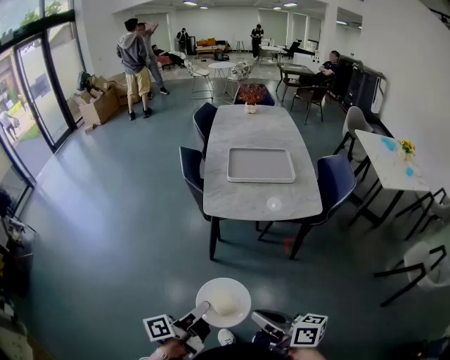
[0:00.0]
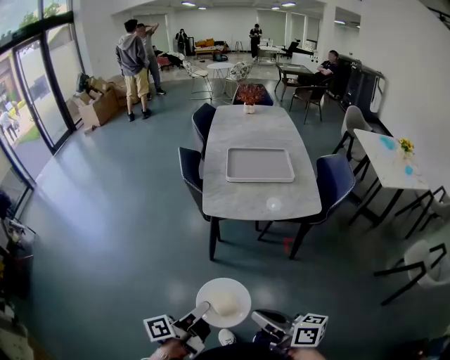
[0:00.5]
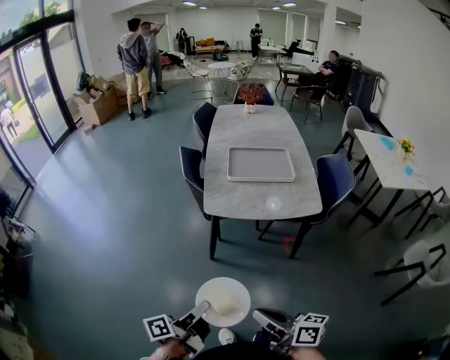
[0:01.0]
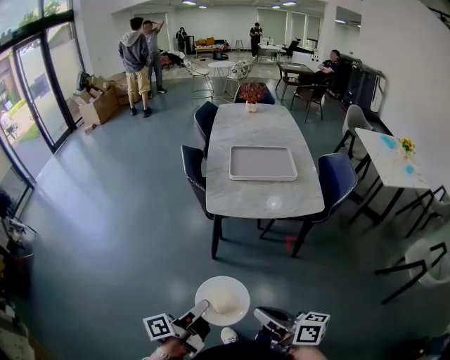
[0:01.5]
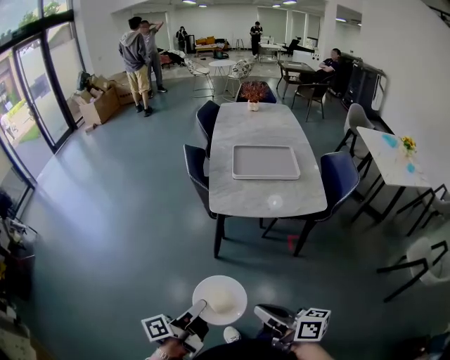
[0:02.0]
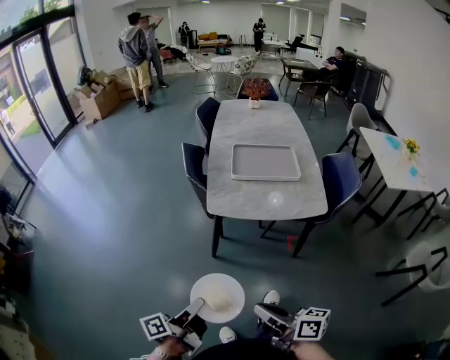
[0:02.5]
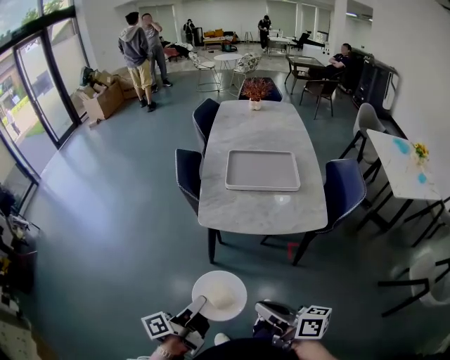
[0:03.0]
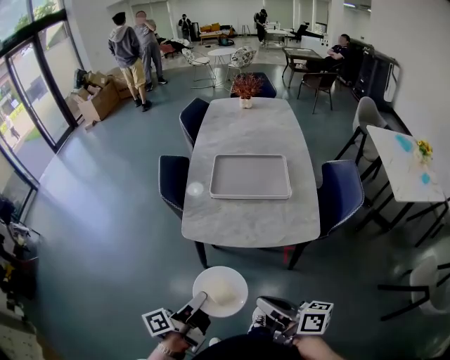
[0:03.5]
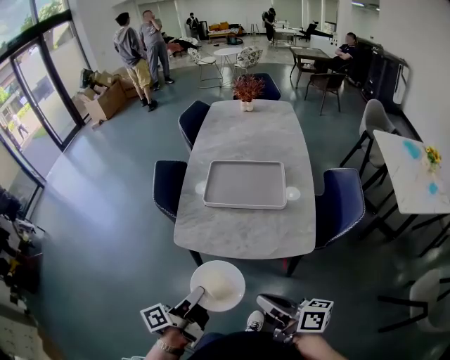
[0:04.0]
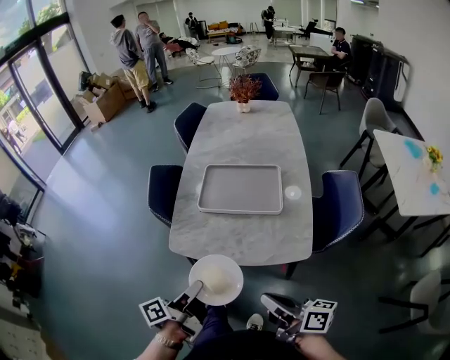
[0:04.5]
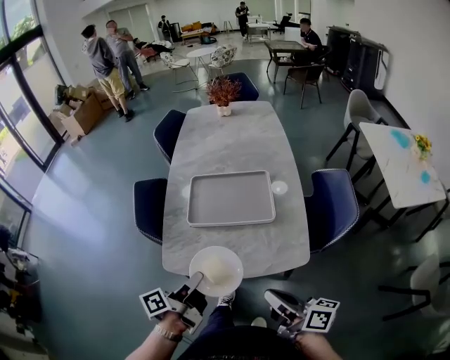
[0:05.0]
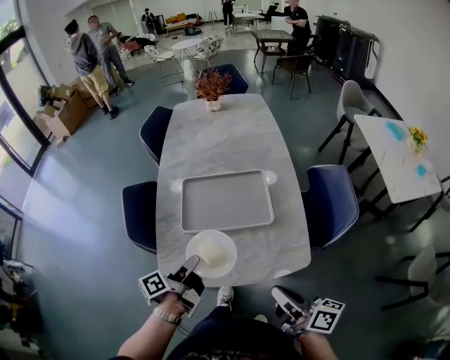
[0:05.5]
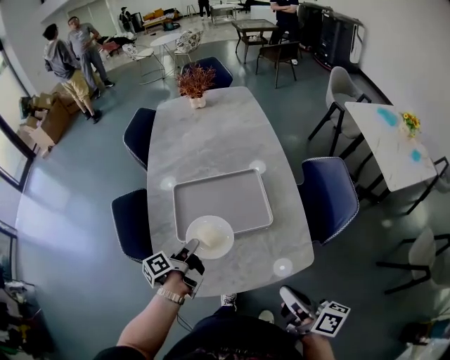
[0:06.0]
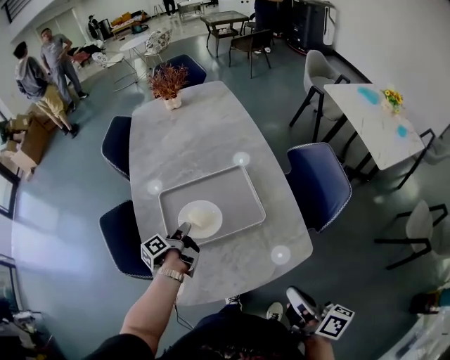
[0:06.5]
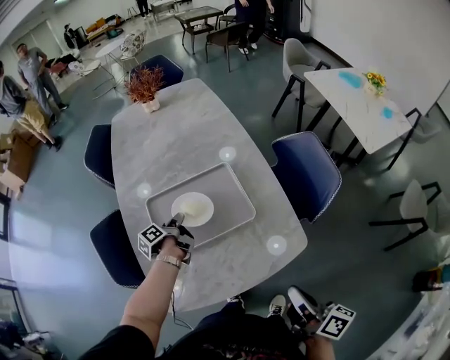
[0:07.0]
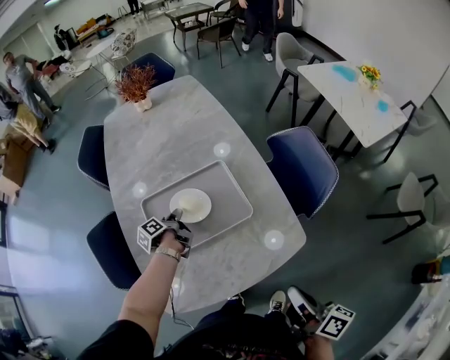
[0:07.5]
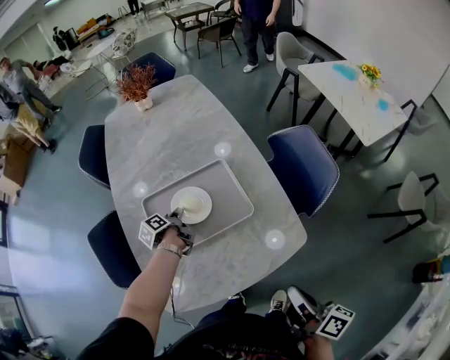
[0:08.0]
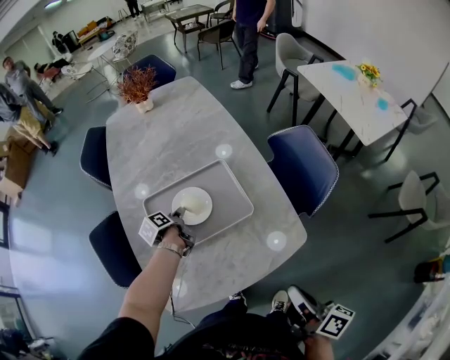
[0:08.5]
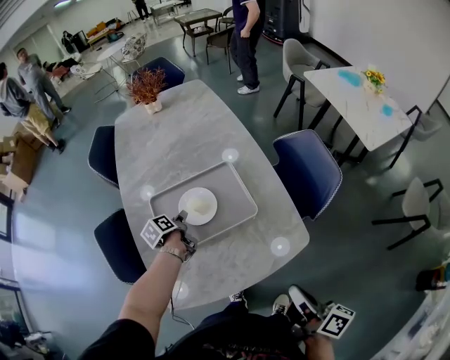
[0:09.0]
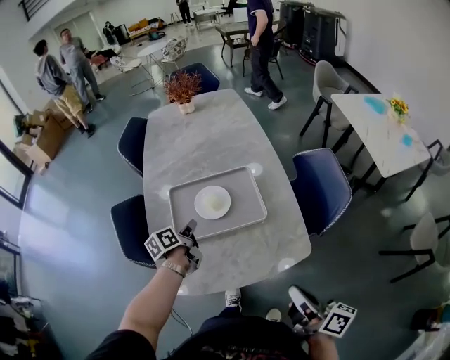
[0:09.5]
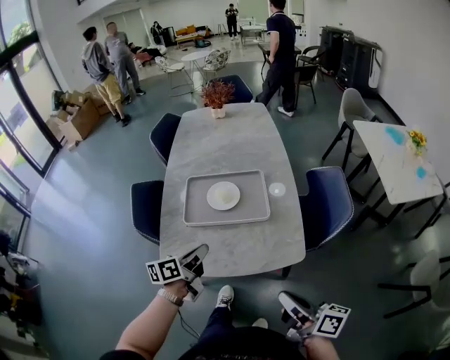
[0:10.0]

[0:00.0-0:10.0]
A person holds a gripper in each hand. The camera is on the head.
0:02.0 to 0:04.0: The right gripper changes place by some 30 cm.
0:04.0 to 0:06.0: The right gripper changes place by approximately 15 cm, and changes its angle by approximately 30 degrees.
0:06.0 to 0:08.0: The right gripper turns by approximately 20 degrees.
0:08.0 to 0:10.0: The right gripper changes place by some 5 cm, and rotates about 40 degrees.

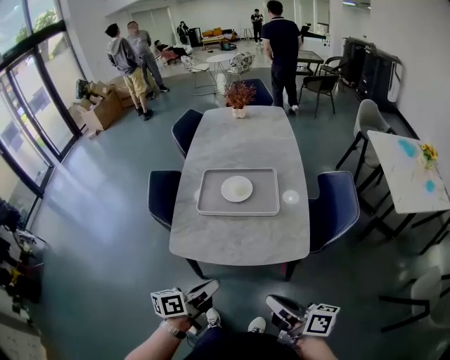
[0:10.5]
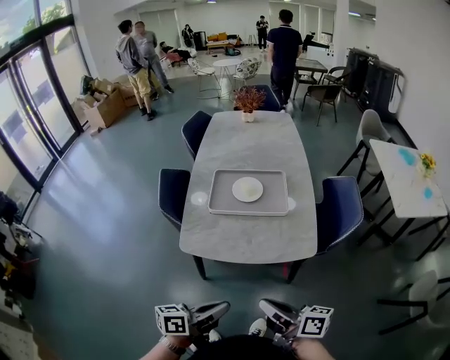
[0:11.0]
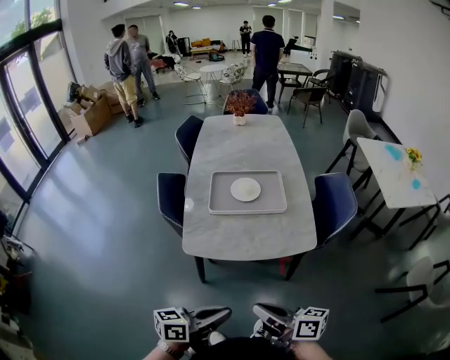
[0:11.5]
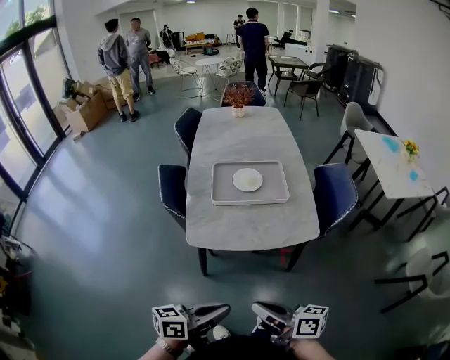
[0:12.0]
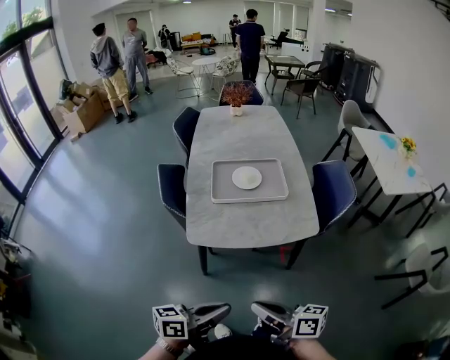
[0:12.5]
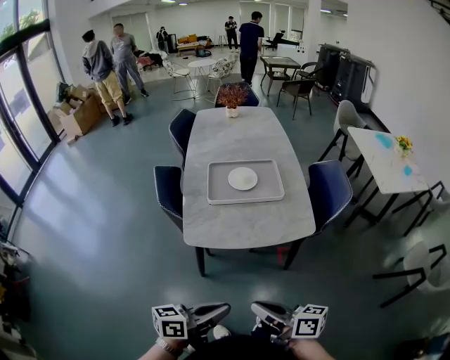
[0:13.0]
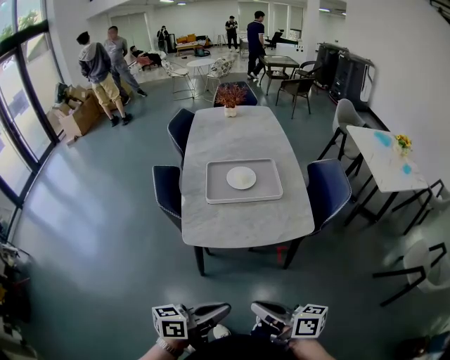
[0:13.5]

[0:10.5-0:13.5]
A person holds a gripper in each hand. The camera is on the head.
0:10.5 to 0:12.0: The right gripper changes place by some 20 cm.

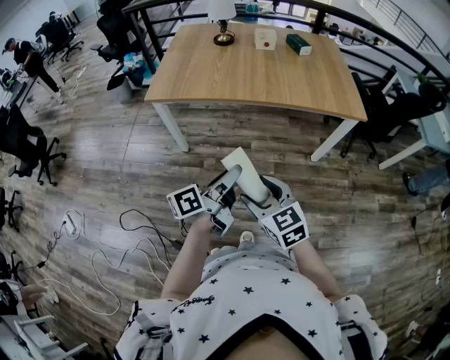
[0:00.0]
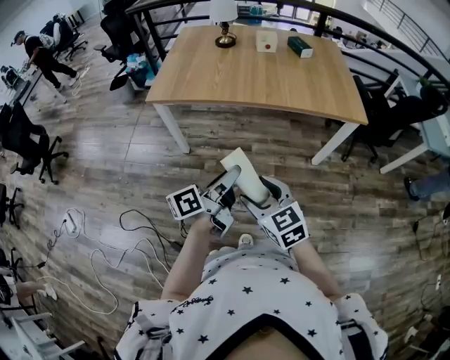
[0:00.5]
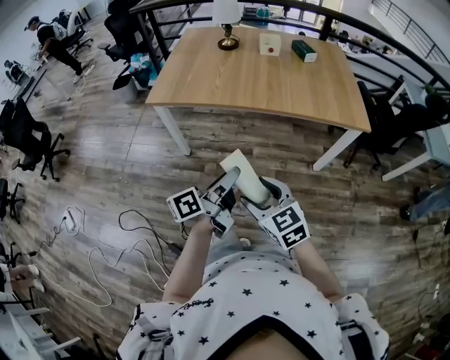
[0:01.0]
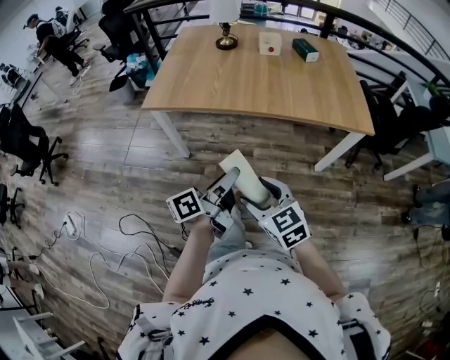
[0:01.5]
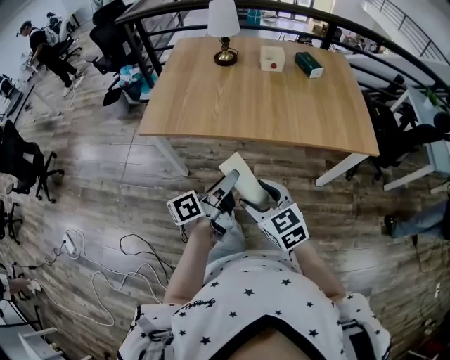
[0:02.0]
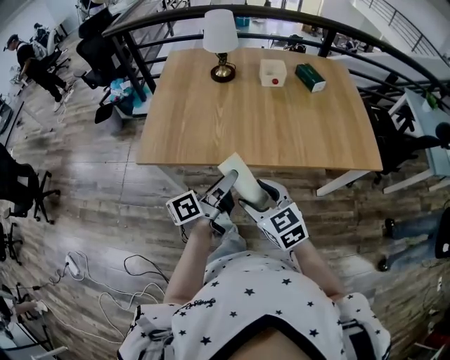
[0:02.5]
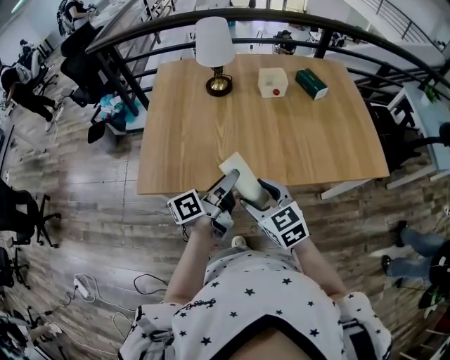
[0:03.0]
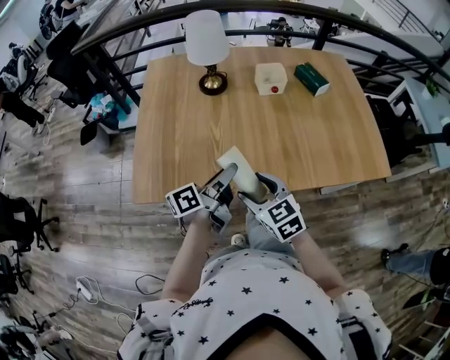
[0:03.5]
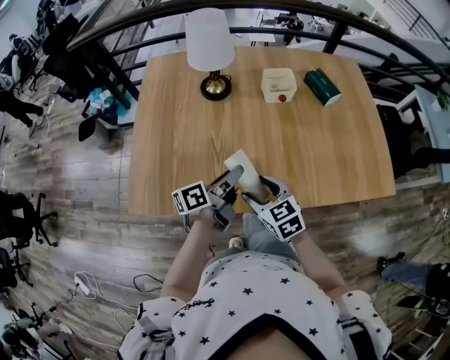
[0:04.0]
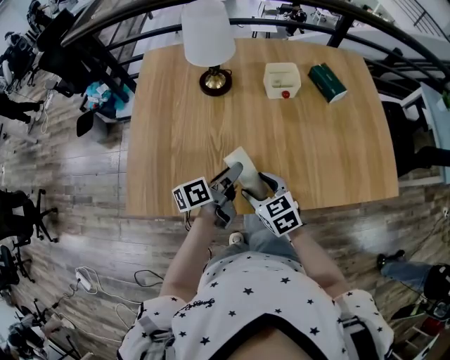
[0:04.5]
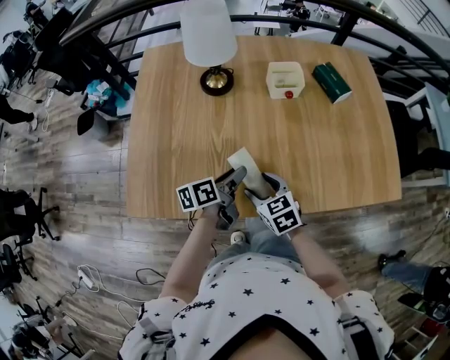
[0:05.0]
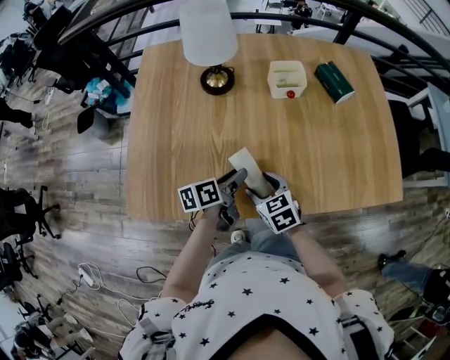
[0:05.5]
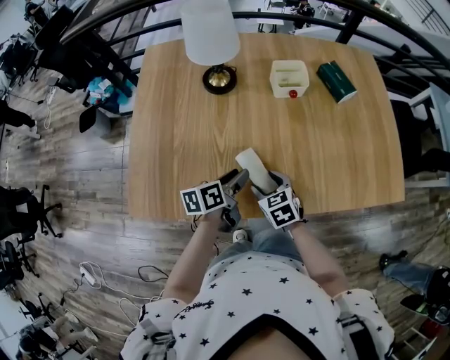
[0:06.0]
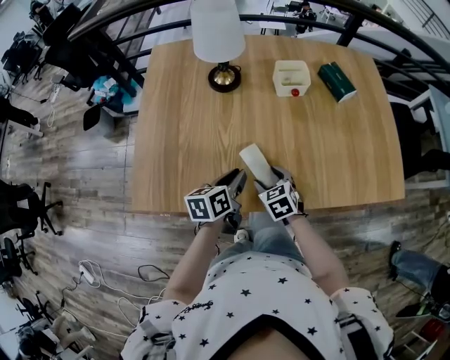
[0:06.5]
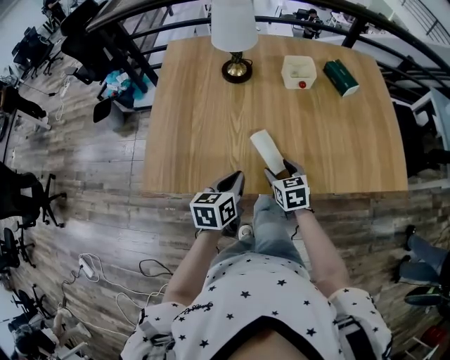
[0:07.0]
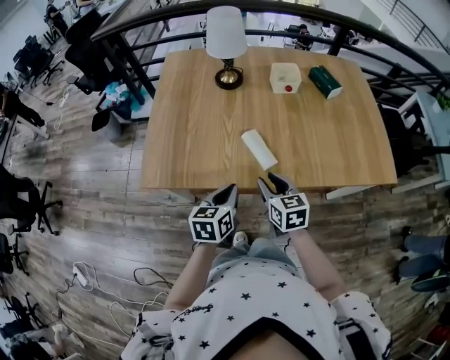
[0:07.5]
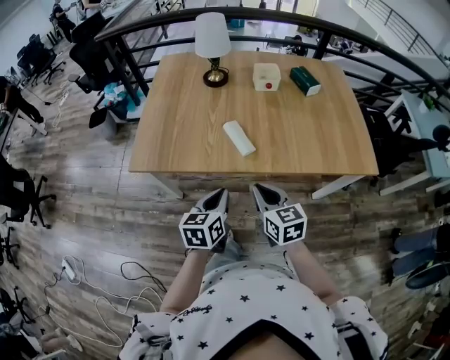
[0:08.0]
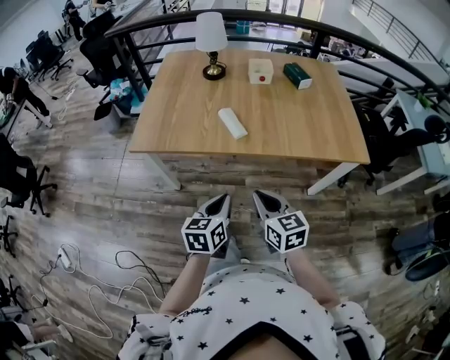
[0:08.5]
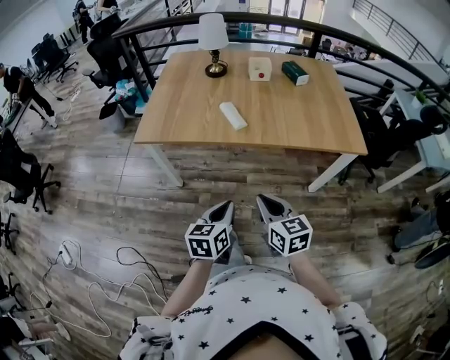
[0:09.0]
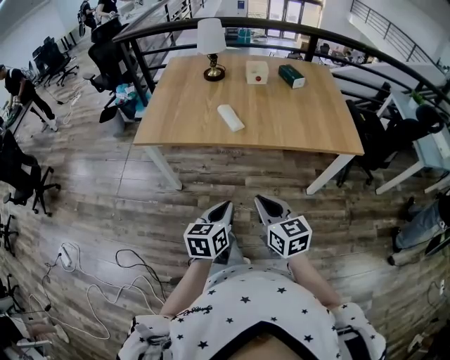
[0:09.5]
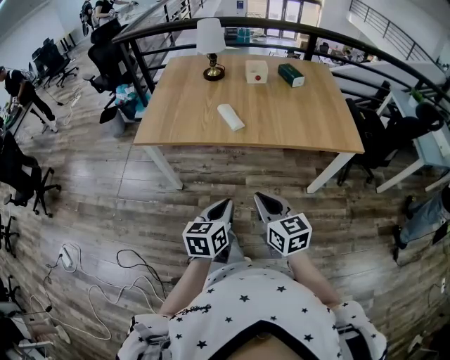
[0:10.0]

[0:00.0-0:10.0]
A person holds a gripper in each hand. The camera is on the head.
0:00.0 to 0:02.0: Both grippers travel together forward, roughly 20 cm.
0:02.0 to 0:04.0: The grippers both shift forward by about 40 cm.
0:04.0 to 0:06.0: The left gripper shifts about 5 cm downward, and changes its angle by some 20 degrees. The right gripper heads downward and forward, covering roughly 10 cm.
0:06.0 to 0:08.0: The right gripper moves backward and upward, some 30 cm, changes its angle by about 30 degrees, and closes; the left gripper heads backward, covering roughly 30 cm, swivels approximately 30 degrees, and closes.
0:08.0 to 0:10.0: Both grippers move backward, about 20 cm.

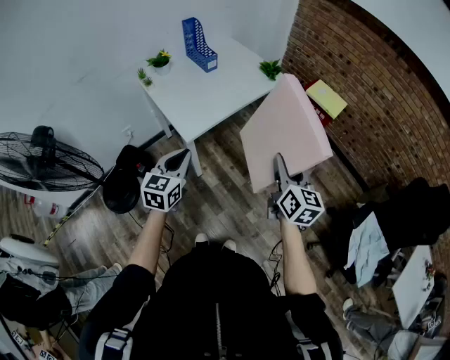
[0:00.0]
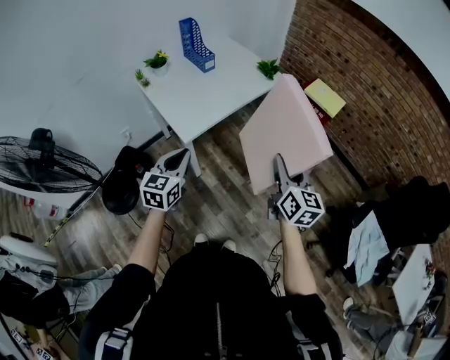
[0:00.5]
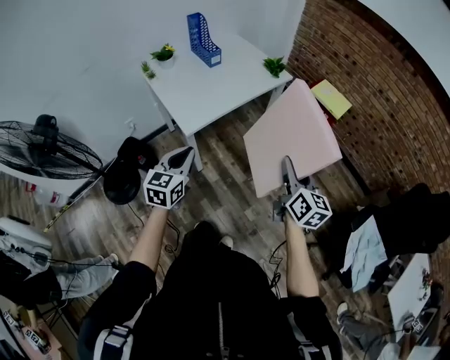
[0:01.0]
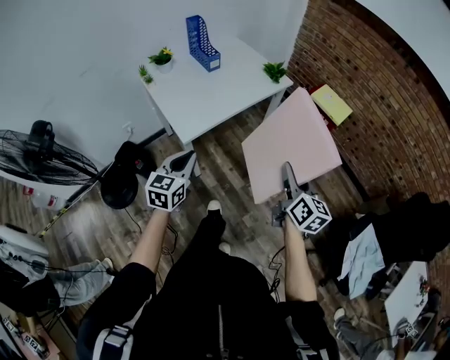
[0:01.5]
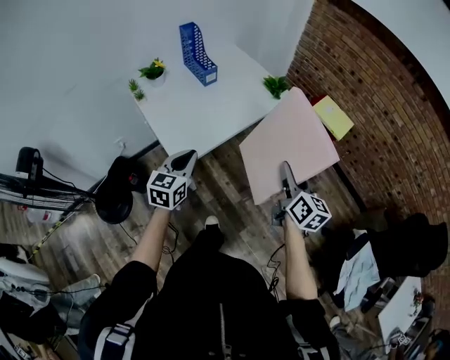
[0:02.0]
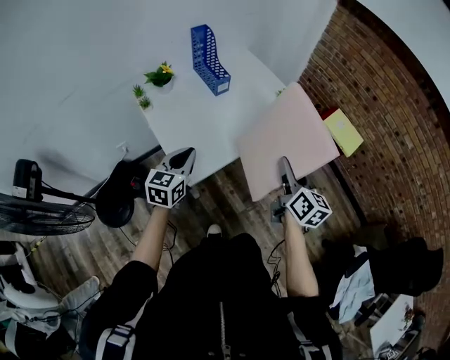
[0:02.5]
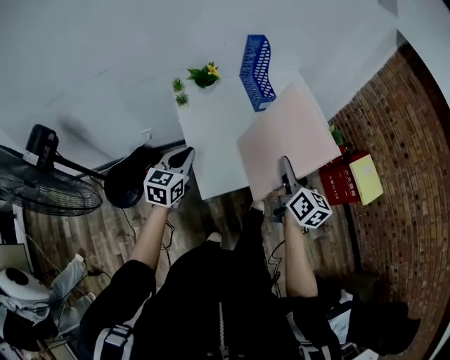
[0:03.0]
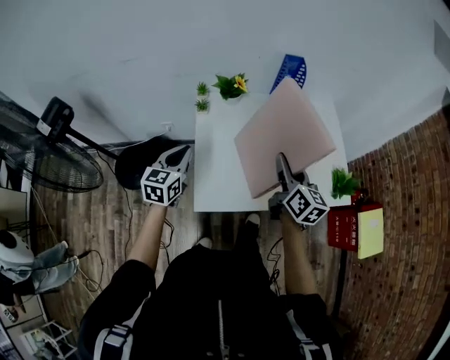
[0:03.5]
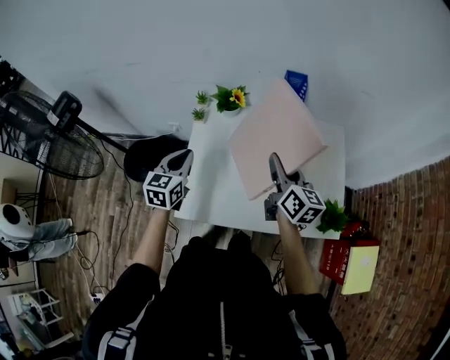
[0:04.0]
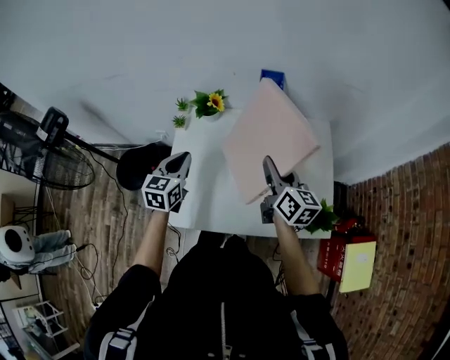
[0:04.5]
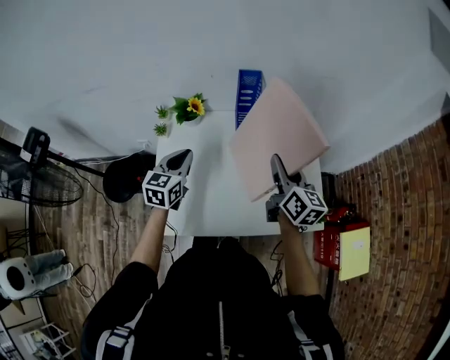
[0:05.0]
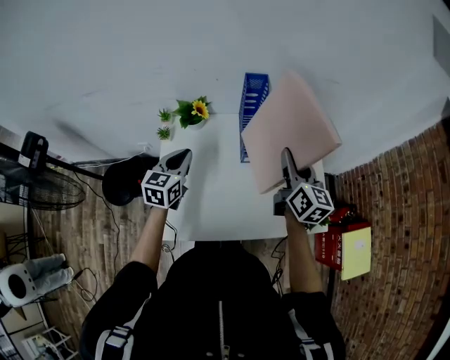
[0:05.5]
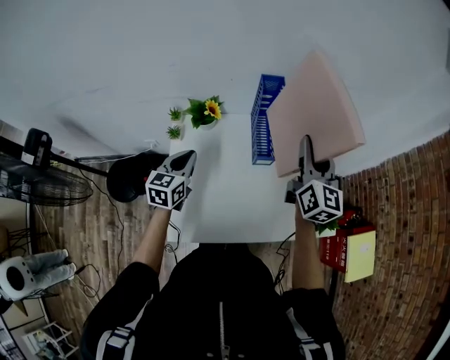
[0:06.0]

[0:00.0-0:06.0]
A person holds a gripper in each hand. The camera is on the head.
0:00.0 to 0:02.0: The two grippers go some 15 cm forward.
0:02.0 to 0:04.0: The right gripper changes place by roughly 50 cm, and turns by about 50 degrees. The left gripper changes place by about 30 cm, and turns by approximately 50 degrees.
0:04.0 to 0:06.0: The left gripper moves forward, about 10 cm. Meanwhile the right gripper travels to the right, upward and forward by about 15 cm, and turns by approximately 30 degrees.
